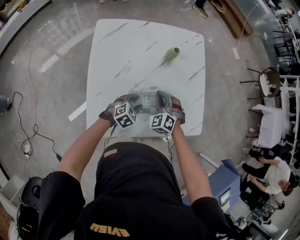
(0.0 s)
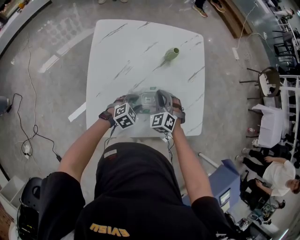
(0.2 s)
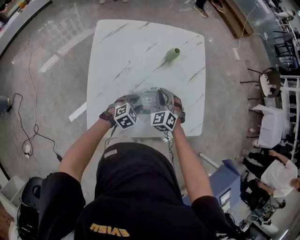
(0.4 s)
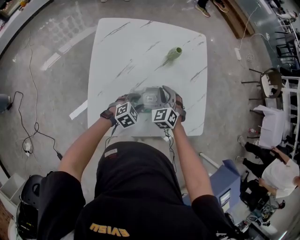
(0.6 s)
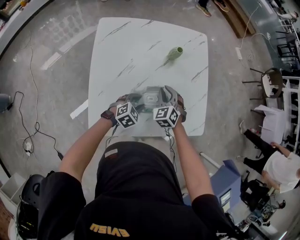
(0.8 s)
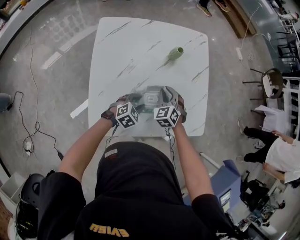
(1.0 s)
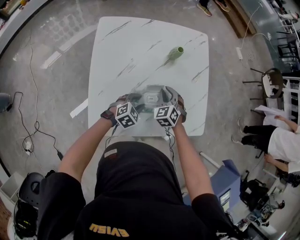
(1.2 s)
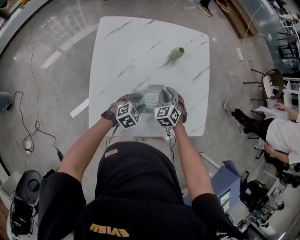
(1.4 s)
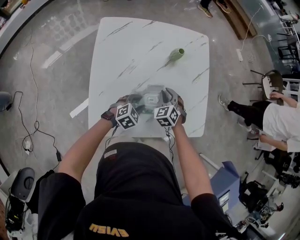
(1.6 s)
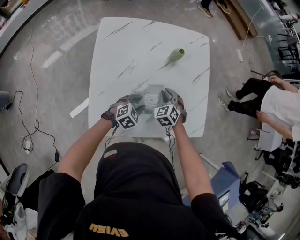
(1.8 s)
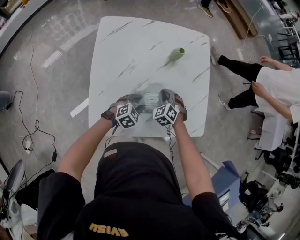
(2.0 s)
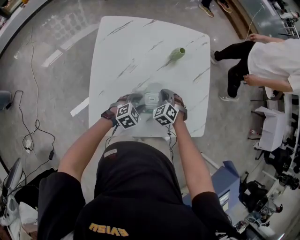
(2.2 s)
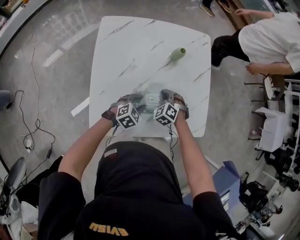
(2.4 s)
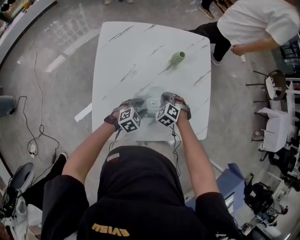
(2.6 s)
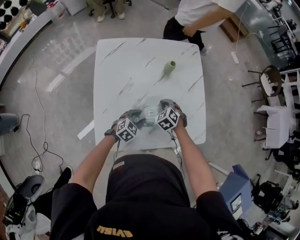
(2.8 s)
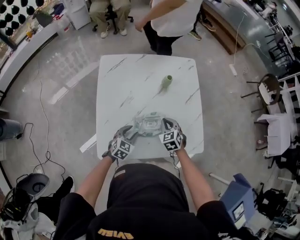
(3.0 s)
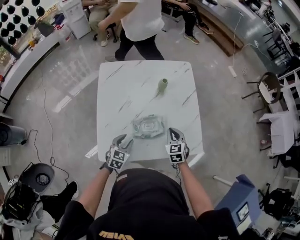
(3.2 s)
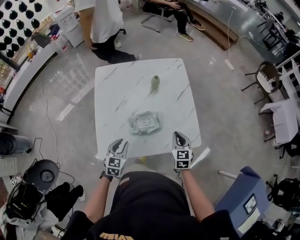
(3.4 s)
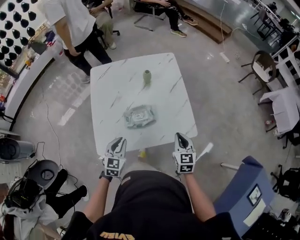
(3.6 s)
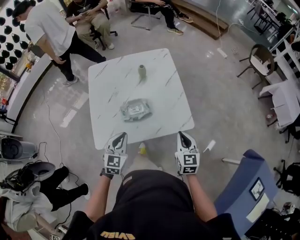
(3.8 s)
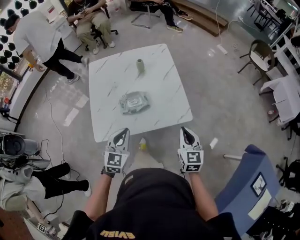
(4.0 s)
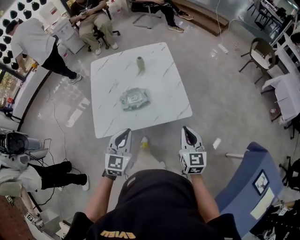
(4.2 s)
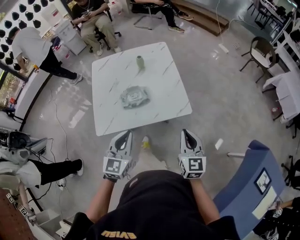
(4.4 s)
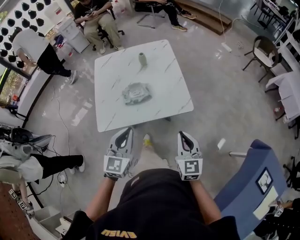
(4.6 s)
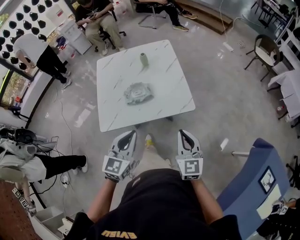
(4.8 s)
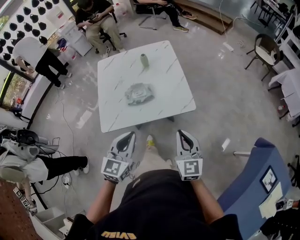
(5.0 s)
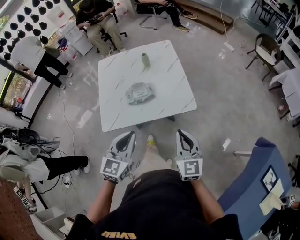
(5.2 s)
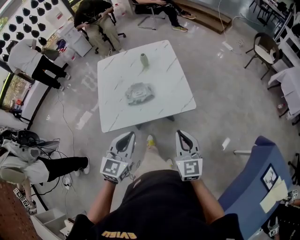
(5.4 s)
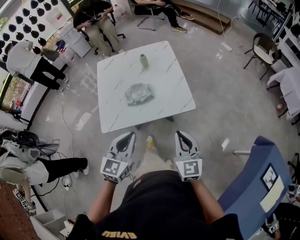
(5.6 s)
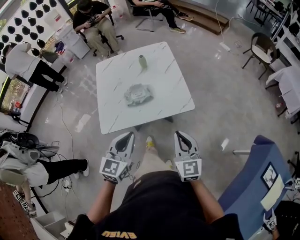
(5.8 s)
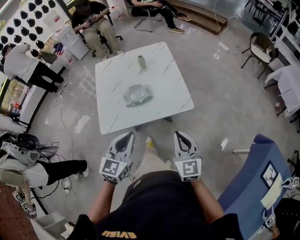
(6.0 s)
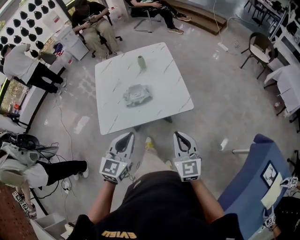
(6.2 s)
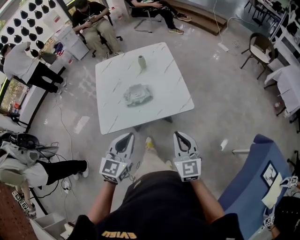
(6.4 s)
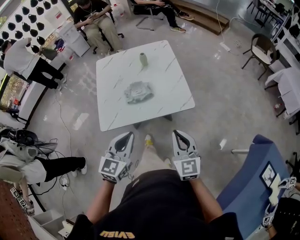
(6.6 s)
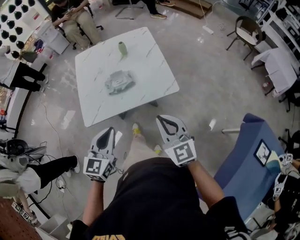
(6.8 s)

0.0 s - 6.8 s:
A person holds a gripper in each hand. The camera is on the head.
0.0 s - 1.4 s: The right gripper shifts by approximately 5 cm.
2.8 s - 4.0 s: The left gripper heads upward and backward, covering some 30 cm, rotates roughly 30 degrees, and closes its fingers, while the right gripper shifts about 40 cm to the right, backward and upward, and angles its fingers upward, by roughly 40 degrees.
4.0 s - 5.4 s: The left gripper shifts about 15 cm backward, upward and to the right. The right gripper is displaced backward and upward by about 15 cm.
5.4 s - 6.8 s: There are only small adjustments of the grippers.

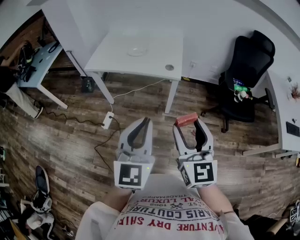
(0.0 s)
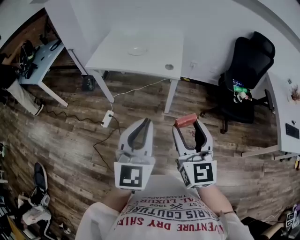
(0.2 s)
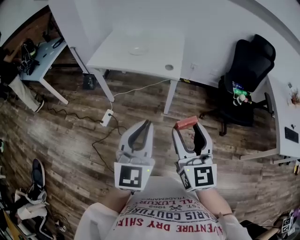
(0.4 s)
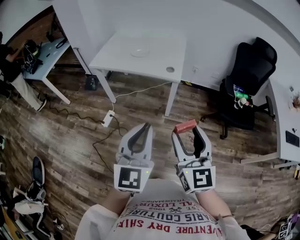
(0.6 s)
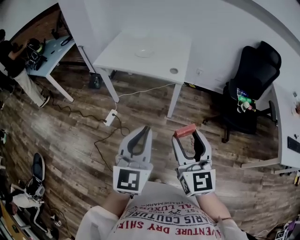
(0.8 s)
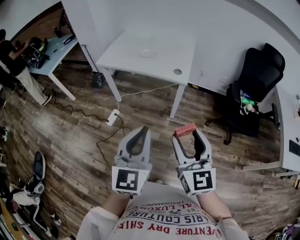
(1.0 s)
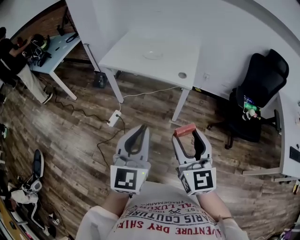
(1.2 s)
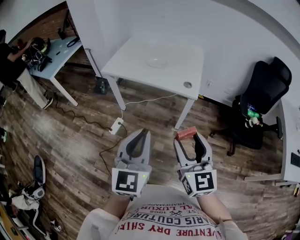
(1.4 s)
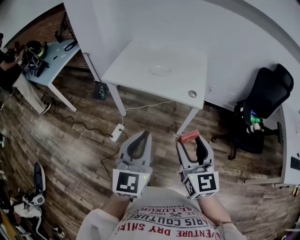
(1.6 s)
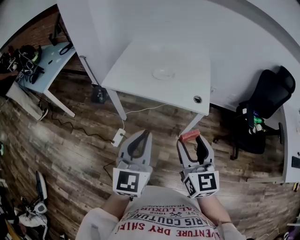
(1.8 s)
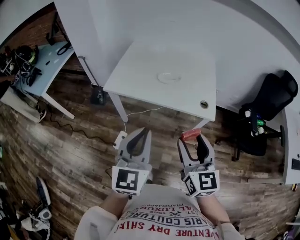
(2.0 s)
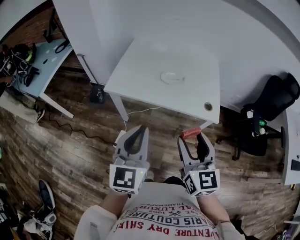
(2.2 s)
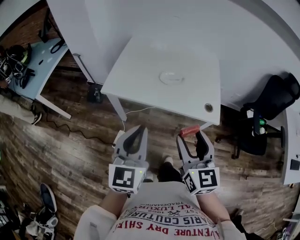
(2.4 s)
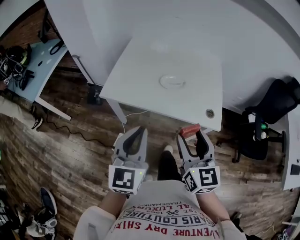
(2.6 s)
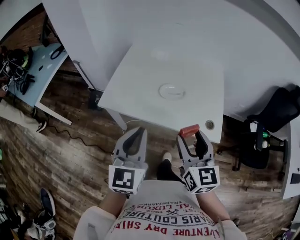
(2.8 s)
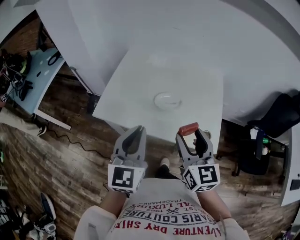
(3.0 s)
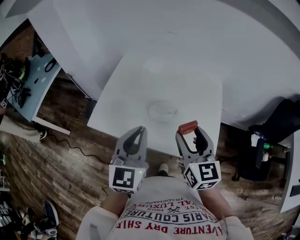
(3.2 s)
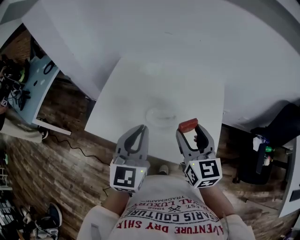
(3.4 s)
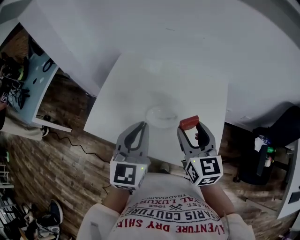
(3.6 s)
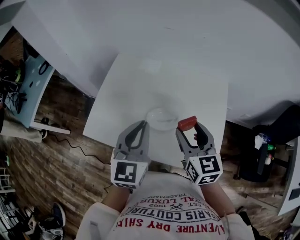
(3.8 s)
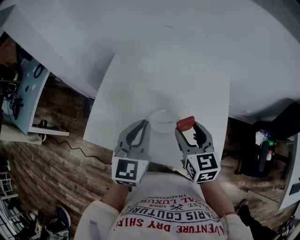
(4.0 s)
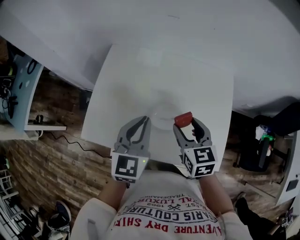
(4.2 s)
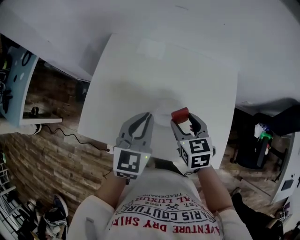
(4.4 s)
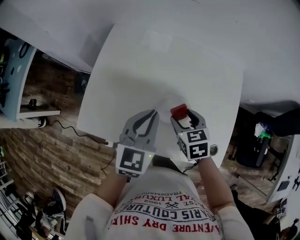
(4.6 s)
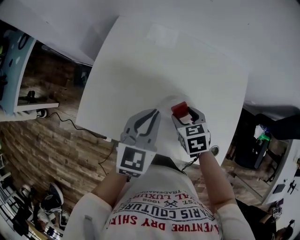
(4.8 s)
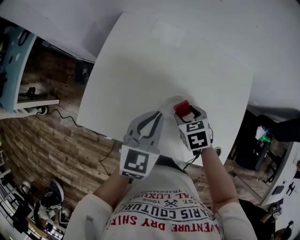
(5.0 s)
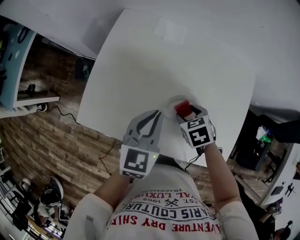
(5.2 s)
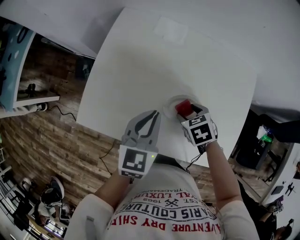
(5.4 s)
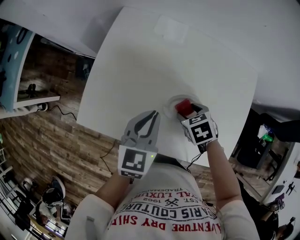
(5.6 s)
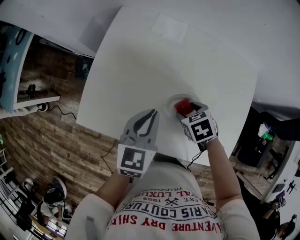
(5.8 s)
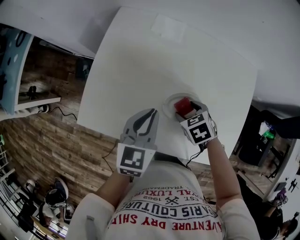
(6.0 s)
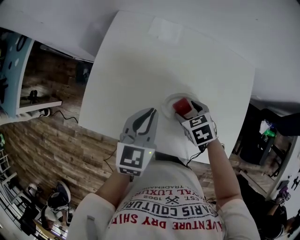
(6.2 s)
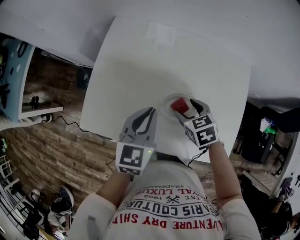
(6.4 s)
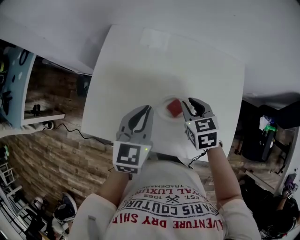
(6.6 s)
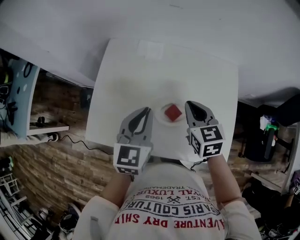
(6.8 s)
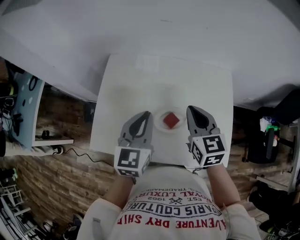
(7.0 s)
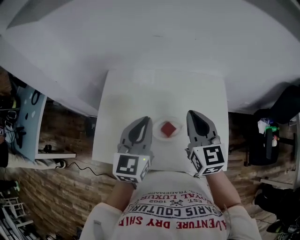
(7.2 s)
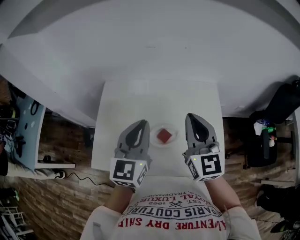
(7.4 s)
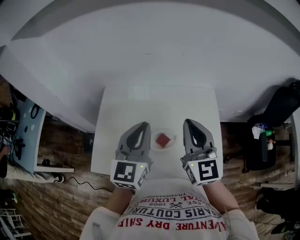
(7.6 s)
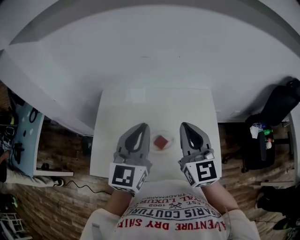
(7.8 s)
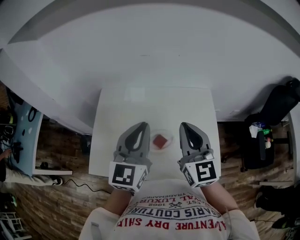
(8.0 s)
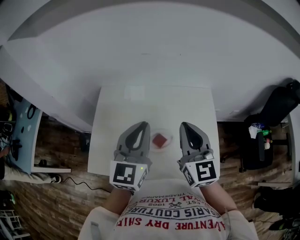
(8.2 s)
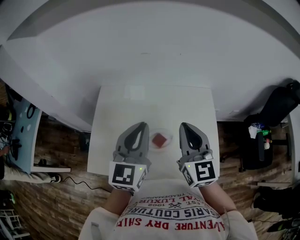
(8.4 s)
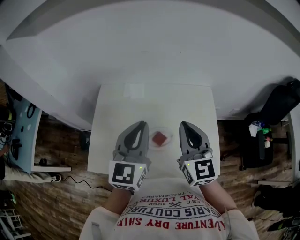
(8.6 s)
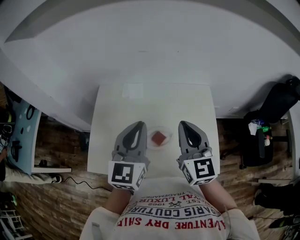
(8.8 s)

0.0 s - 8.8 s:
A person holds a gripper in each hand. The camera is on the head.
0.0 s - 1.4 s: The right gripper shifts by roughly 5 cm, while the left gripper is displaced to the left by about 5 cm.
1.4 s - 3.0 s: The pair of grippers is taken forward, roughly 40 cm.
3.0 s - 4.4 s: Both grippers move forward and downward, some 25 cm. The right gripper angles its fingers downward, by roughly 30 degrees.
4.4 s - 5.8 s: The left gripper moves downward, roughly 5 cm, while the right gripper shifts approximately 10 cm downward, and points its fingers some 30 degrees further downward.
5.8 s - 7.4 s: The left gripper goes some 20 cm upward, and turns by about 30 degrees. The right gripper shifts about 35 cm upward, points its fingers roughly 70 degrees further upward, and closes.
7.4 s - 8.8 s: The grippers make only small movements.

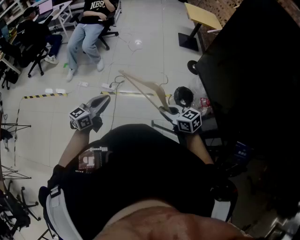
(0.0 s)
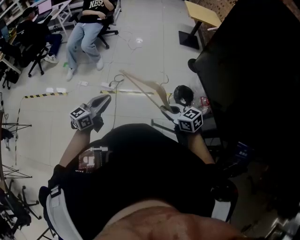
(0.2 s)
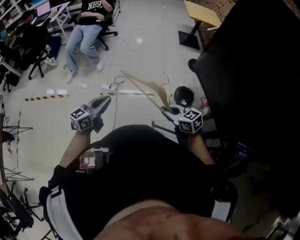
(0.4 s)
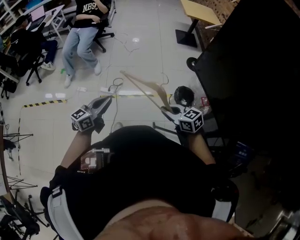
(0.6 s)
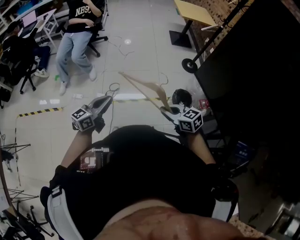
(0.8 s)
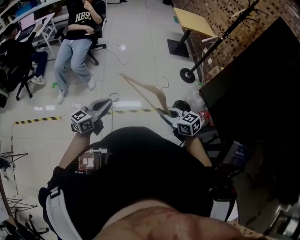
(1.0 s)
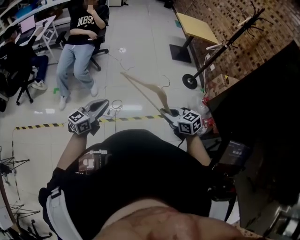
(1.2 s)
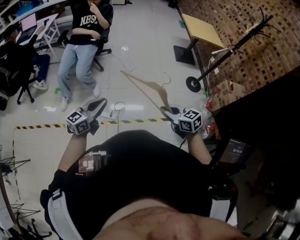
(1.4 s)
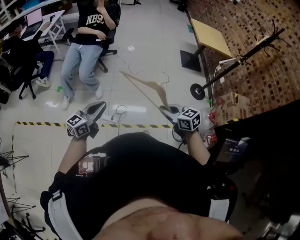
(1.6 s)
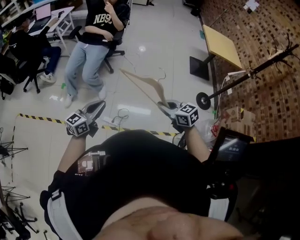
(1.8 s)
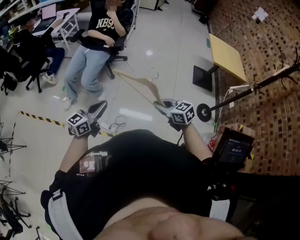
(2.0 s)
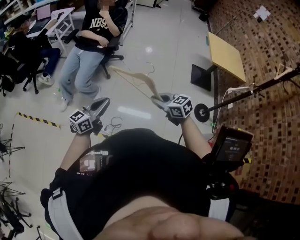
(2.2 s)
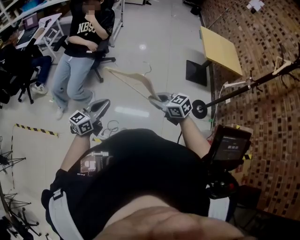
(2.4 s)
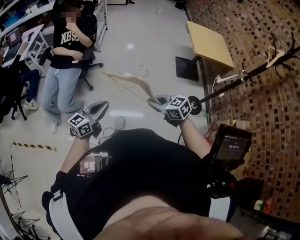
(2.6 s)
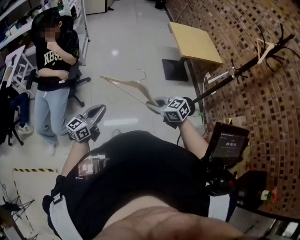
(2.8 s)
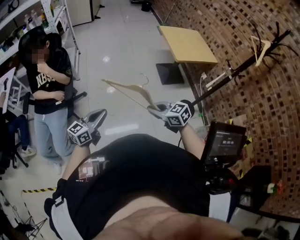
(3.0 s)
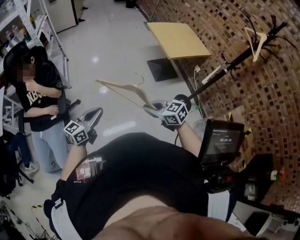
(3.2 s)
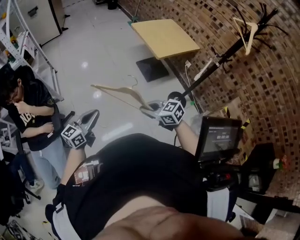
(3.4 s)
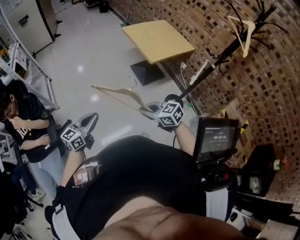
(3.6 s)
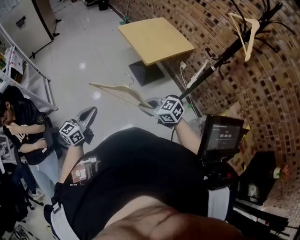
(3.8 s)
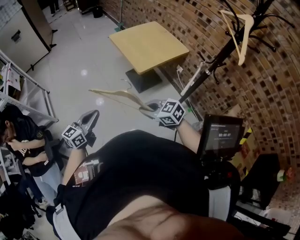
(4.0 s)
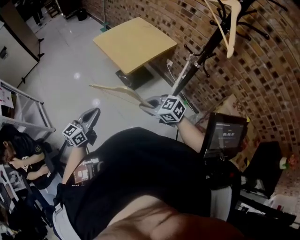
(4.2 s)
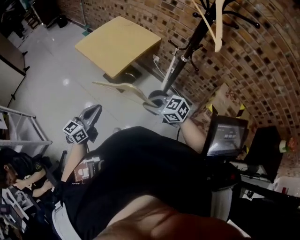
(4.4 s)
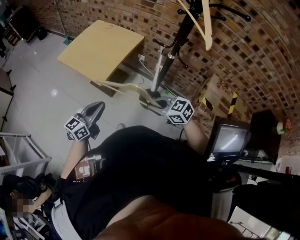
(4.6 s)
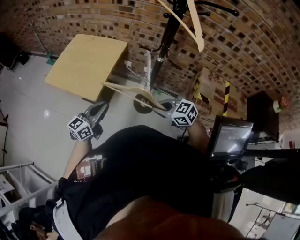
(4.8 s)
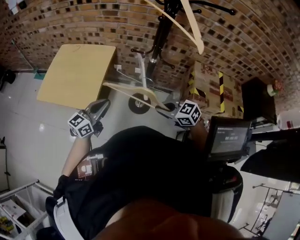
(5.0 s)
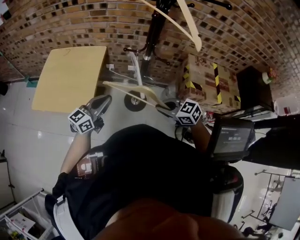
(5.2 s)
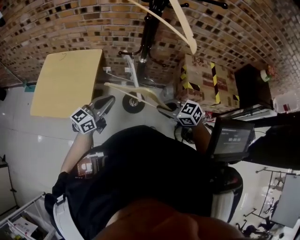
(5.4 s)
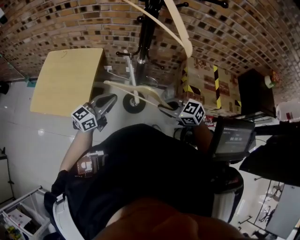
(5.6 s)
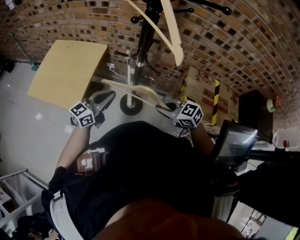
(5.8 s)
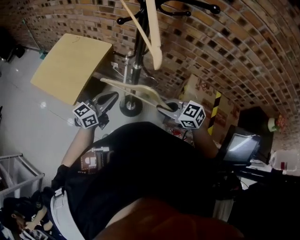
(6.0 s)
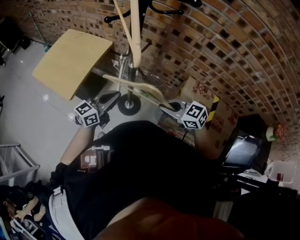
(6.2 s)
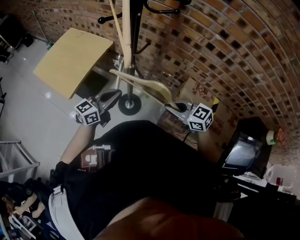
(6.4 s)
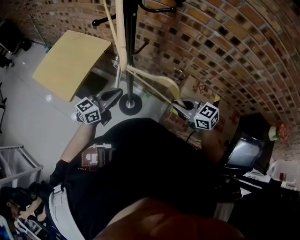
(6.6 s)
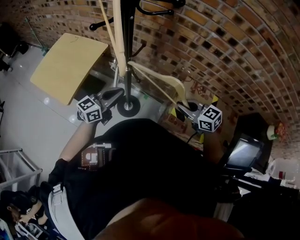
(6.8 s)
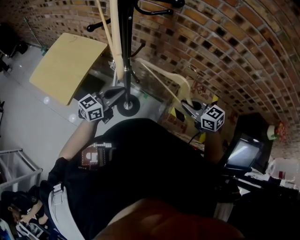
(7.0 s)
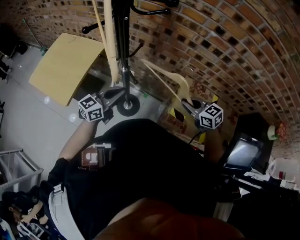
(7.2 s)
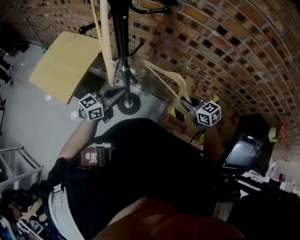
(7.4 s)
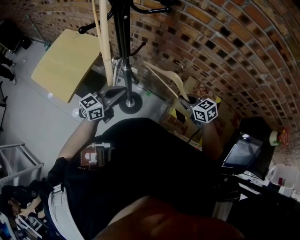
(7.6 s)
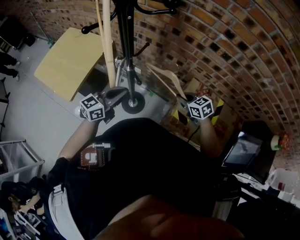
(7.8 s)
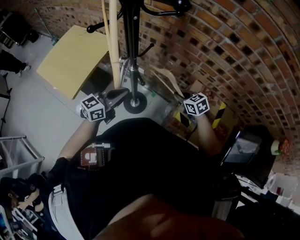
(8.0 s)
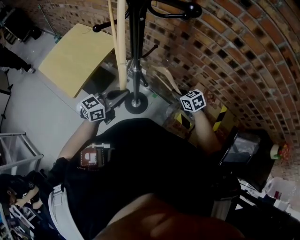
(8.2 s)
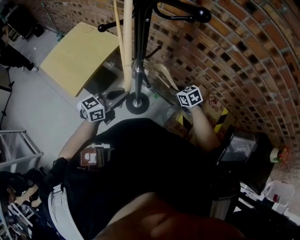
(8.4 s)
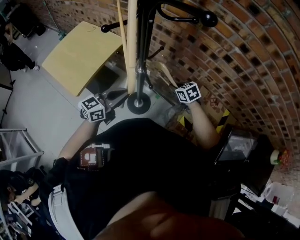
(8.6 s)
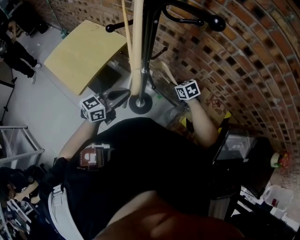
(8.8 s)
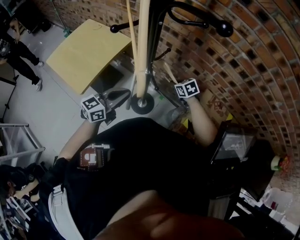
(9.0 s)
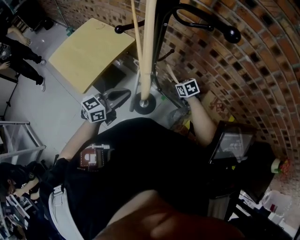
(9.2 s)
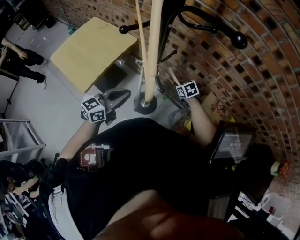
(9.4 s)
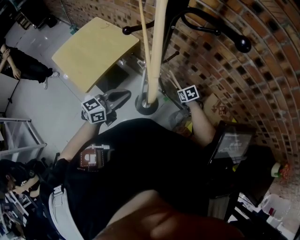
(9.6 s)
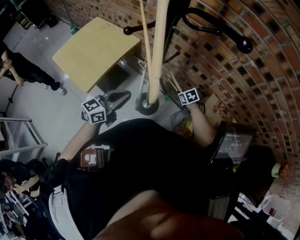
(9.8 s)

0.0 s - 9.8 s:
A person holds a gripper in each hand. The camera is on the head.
0.0 s - 1.4 s: The two grippers go approximately 35 cm forward.
1.4 s - 2.8 s: The two grippers travel together, forward and to the right, about 50 cm.
2.8 s - 4.2 s: Both grippers are carried roughly 50 cm. The left gripper turns by approximately 30 degrees. The right gripper turns by some 20 degrees.
4.2 s - 5.6 s: The right gripper moves roughly 25 cm, and swivels some 40 degrees. The left gripper moves about 40 cm, and rotates about 60 degrees.
5.6 s - 7.0 s: The grippers both shift to the right by roughly 25 cm.
7.0 s - 8.4 s: The right gripper moves forward, downward and to the left, roughly 20 cm, and rotates approximately 20 degrees.
8.4 s - 9.8 s: The right gripper is displaced downward by about 10 cm. Meanwhile the left gripper heads to the left, covering roughly 5 cm.
